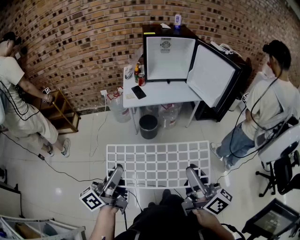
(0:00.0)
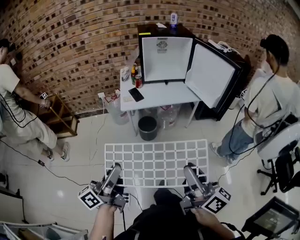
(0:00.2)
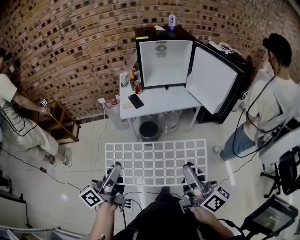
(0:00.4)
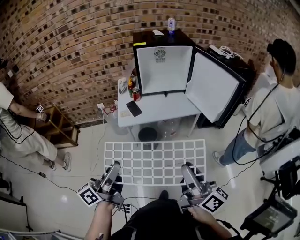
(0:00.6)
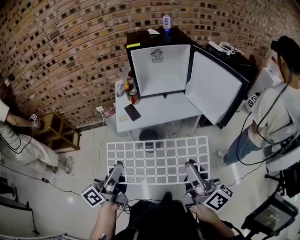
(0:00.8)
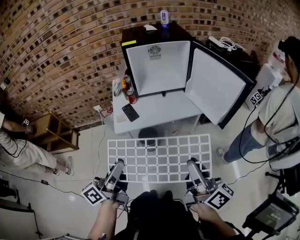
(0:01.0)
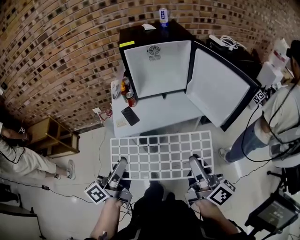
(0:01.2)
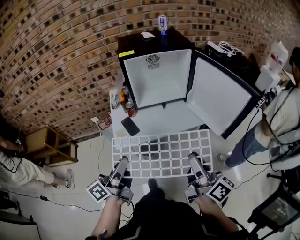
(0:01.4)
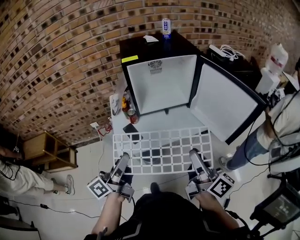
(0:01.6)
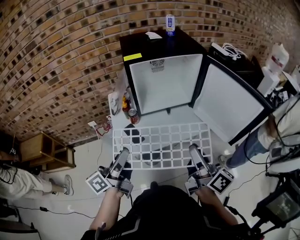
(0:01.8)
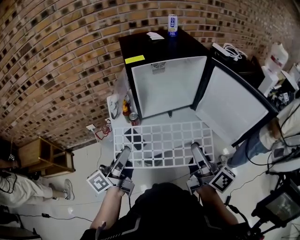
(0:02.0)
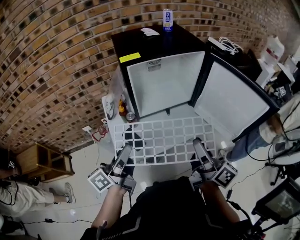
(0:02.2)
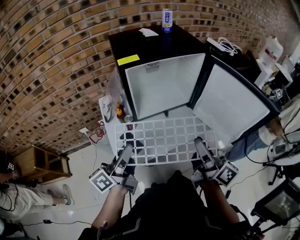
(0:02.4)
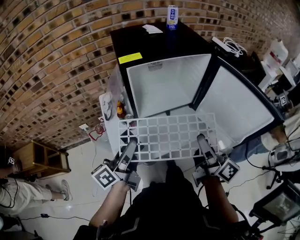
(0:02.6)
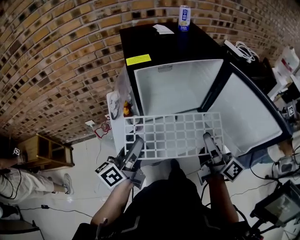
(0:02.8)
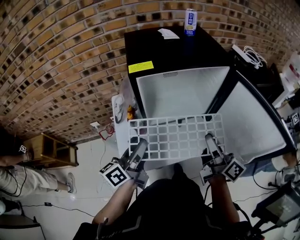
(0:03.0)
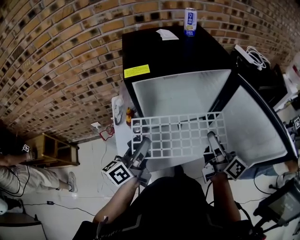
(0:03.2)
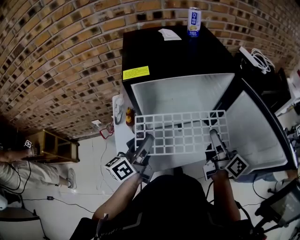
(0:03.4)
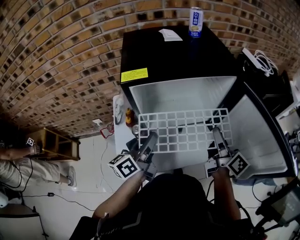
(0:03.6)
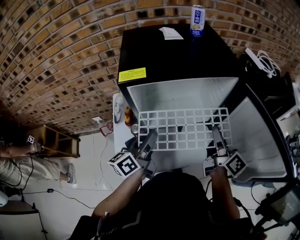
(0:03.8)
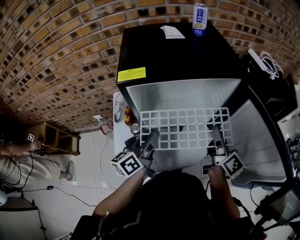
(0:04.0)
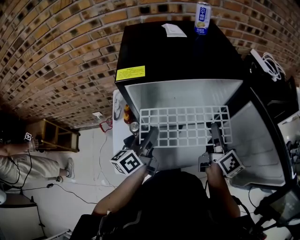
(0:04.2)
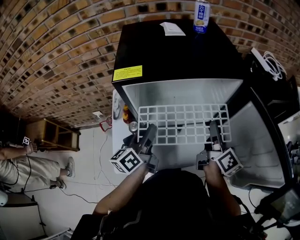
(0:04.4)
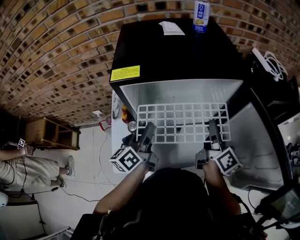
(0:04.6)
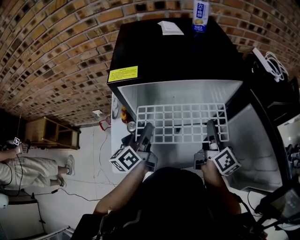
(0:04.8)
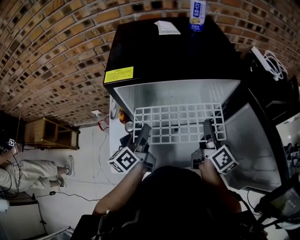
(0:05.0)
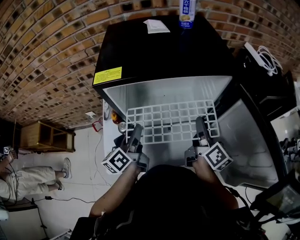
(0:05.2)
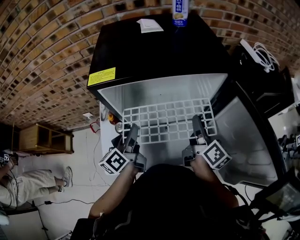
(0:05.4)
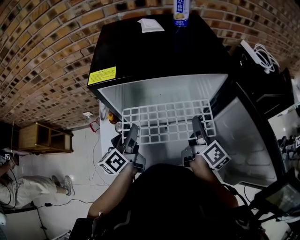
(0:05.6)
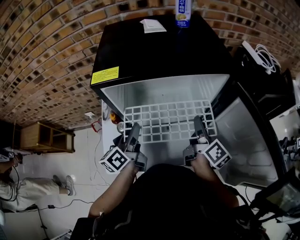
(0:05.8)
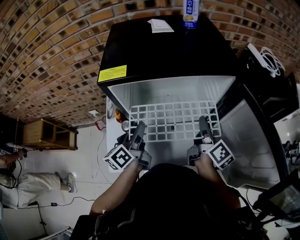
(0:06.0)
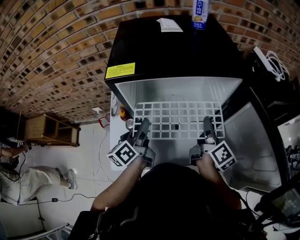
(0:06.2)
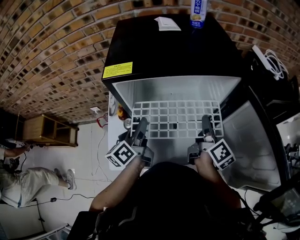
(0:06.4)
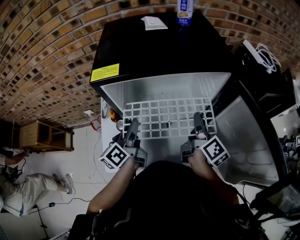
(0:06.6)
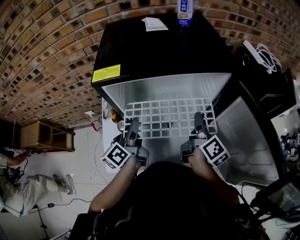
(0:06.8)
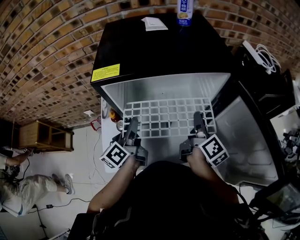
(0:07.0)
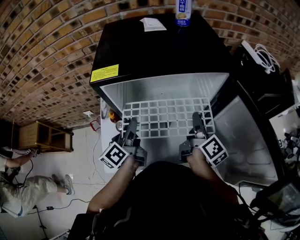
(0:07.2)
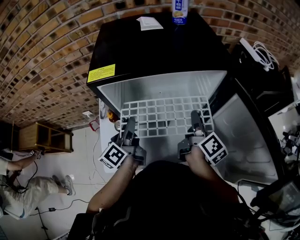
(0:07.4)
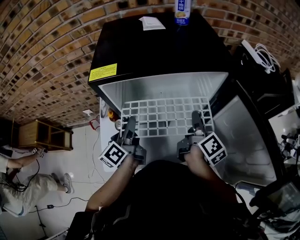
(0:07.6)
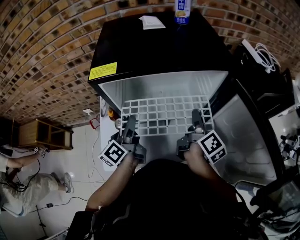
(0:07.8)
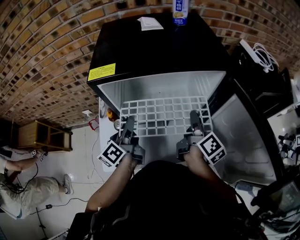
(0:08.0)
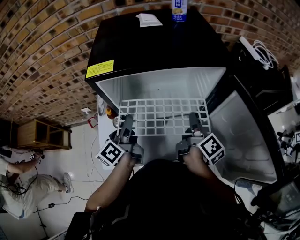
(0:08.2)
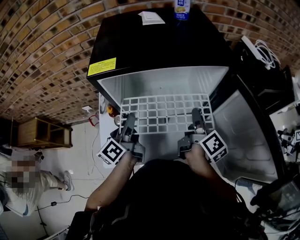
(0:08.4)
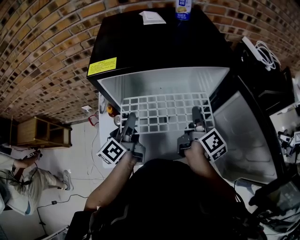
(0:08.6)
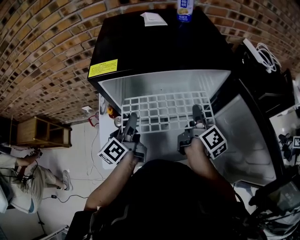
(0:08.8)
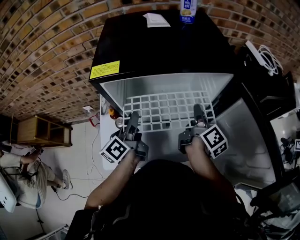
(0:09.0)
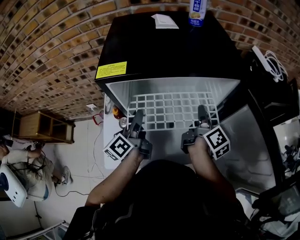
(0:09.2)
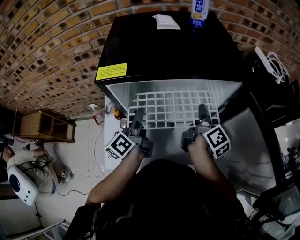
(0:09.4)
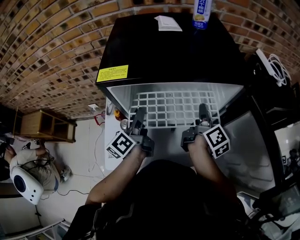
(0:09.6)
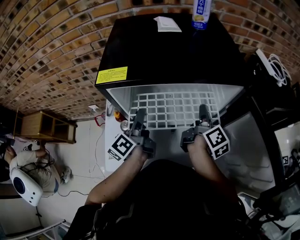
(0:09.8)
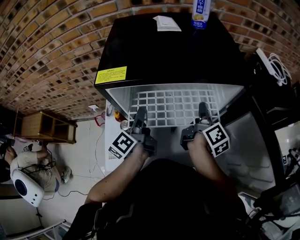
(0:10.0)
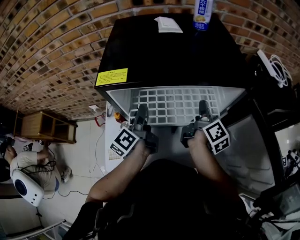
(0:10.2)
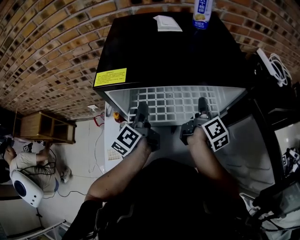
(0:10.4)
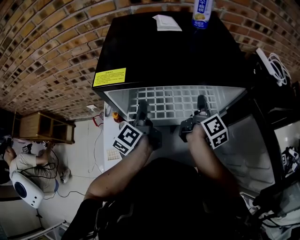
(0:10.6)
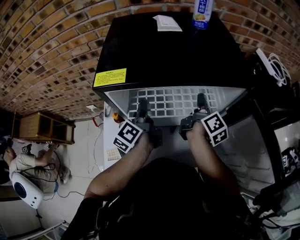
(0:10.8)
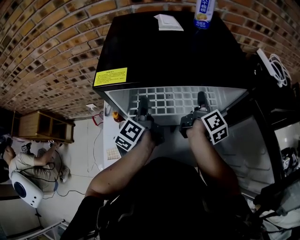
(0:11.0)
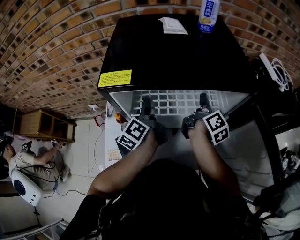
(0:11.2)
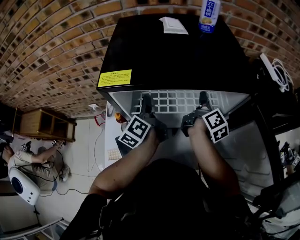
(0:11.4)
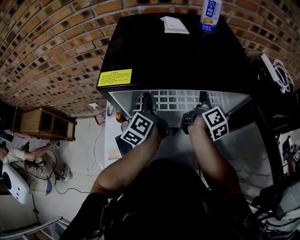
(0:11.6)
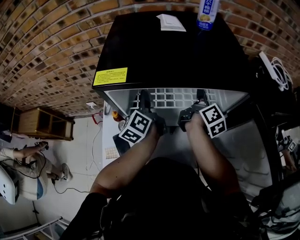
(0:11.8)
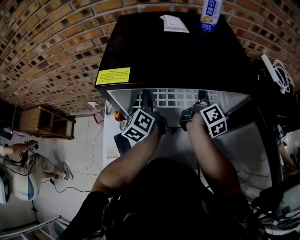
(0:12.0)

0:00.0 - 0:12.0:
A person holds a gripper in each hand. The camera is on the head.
0:00.0 - 0:01.6: The two grippers travel together, forward, about 40 cm.
0:01.6 - 0:03.0: Both grippers move forward, about 25 cm.
0:03.0 - 0:04.4: The left gripper heads forward and to the right, covering about 15 cm. Meanwhile the right gripper moves forward, approximately 15 cm.
0:04.4 - 0:06.0: The right gripper shifts by about 5 cm.
0:06.0 - 0:09.0: There are only small adjustments of the grippers.
0:09.0 - 0:10.4: Both grippers travel together forward, approximately 5 cm.
0:10.4 - 0:12.0: Both grippers move forward, approximately 5 cm.

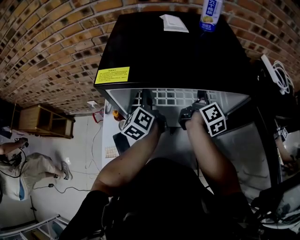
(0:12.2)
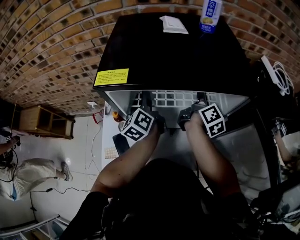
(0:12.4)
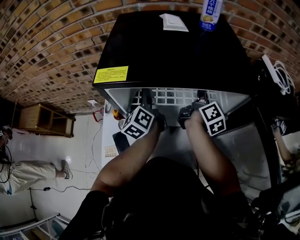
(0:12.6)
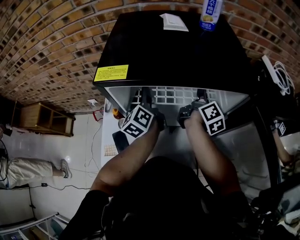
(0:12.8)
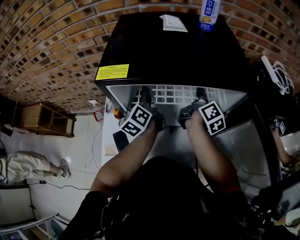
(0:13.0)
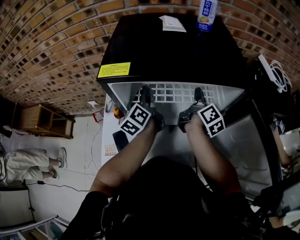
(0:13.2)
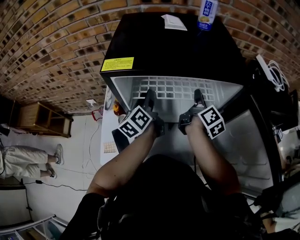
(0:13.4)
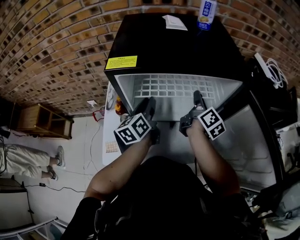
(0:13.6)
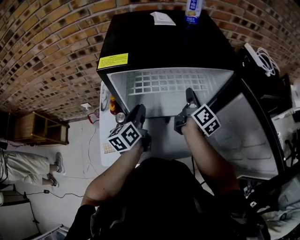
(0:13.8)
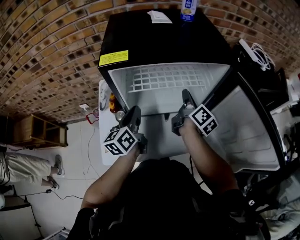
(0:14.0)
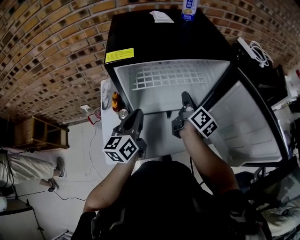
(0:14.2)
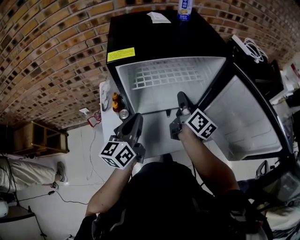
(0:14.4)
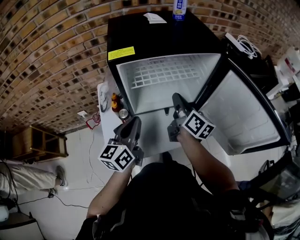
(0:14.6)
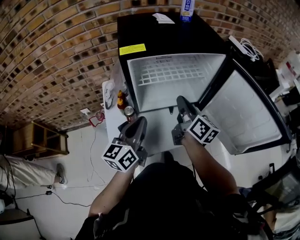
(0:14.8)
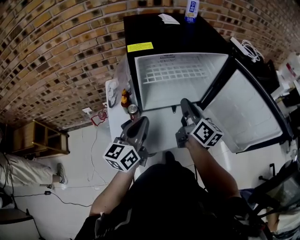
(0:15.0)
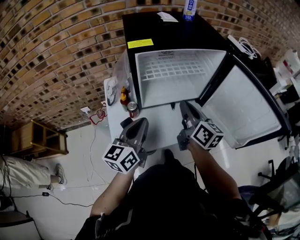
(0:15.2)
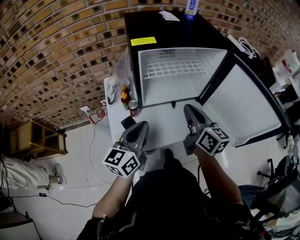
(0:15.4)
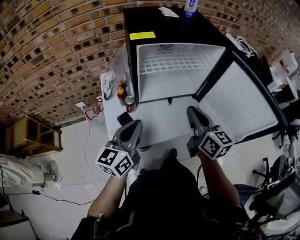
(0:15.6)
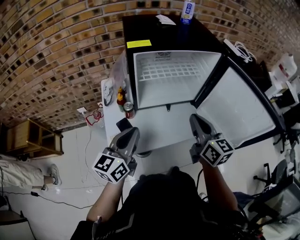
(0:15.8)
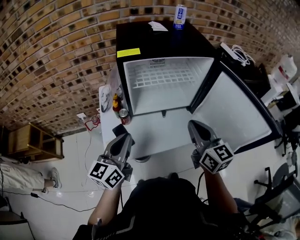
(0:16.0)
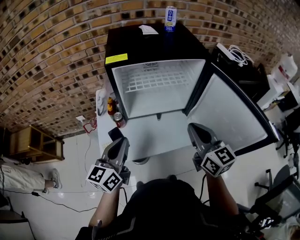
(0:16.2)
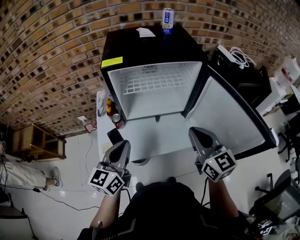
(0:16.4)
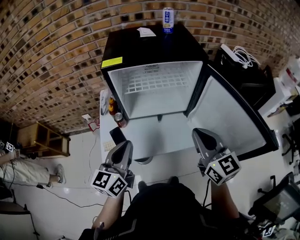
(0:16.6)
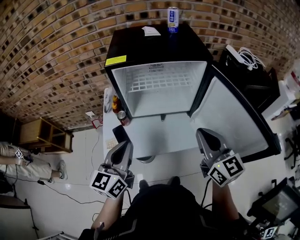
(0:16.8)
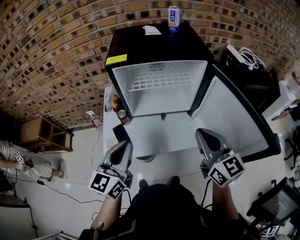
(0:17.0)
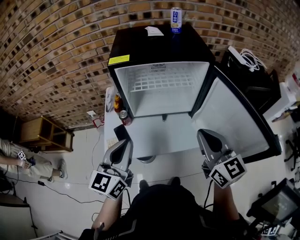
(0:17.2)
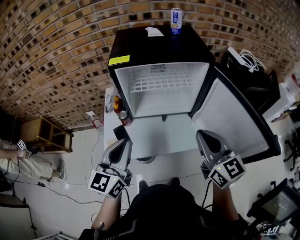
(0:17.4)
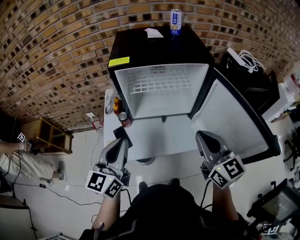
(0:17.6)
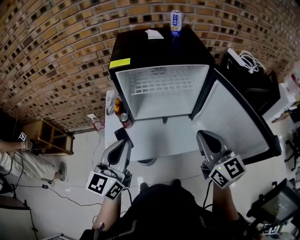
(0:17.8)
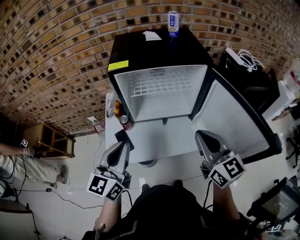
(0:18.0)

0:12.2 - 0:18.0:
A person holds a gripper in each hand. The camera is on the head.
0:12.2 - 0:13.6: Both grippers travel together backward, roughly 5 cm. The left gripper changes its angle by approximately 20 degrees.
0:13.6 - 0:15.0: The right gripper is displaced backward and to the left by about 20 cm, and closes its fingers; the left gripper is displaced backward by approximately 20 cm, swivels roughly 30 degrees, and closes its fingers.
0:15.0 - 0:16.6: The left gripper heads backward and to the right, covering about 10 cm. Meanwhile the right gripper is displaced to the right, backward and upward by some 20 cm, and swivels about 40 degrees.
0:16.6 - 0:18.0: The grippers make only small movements.

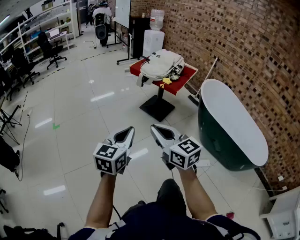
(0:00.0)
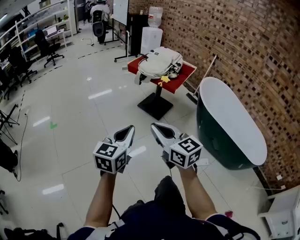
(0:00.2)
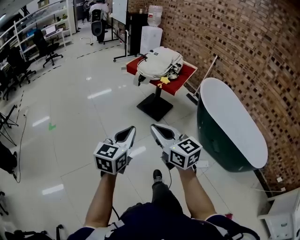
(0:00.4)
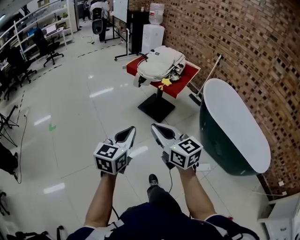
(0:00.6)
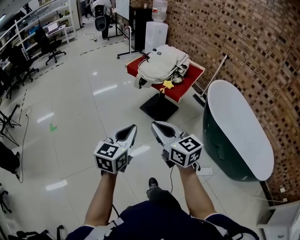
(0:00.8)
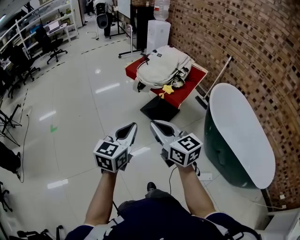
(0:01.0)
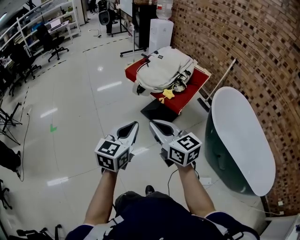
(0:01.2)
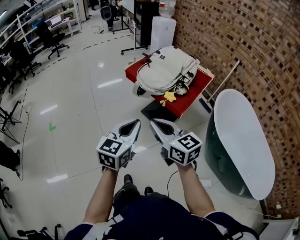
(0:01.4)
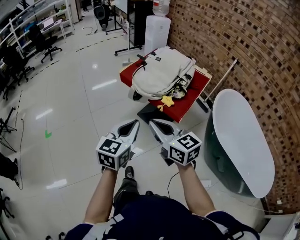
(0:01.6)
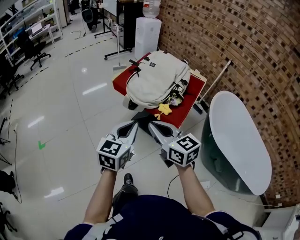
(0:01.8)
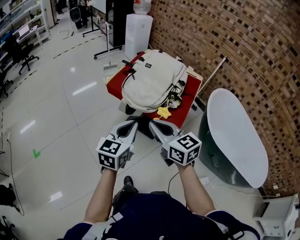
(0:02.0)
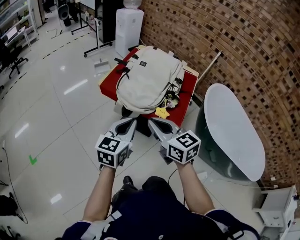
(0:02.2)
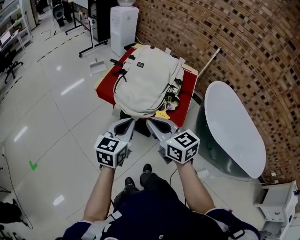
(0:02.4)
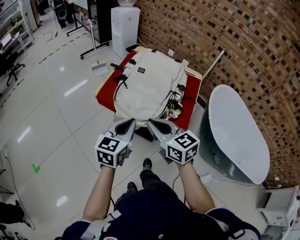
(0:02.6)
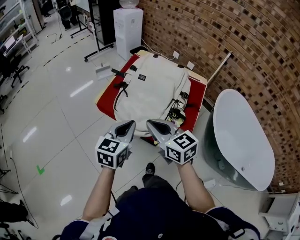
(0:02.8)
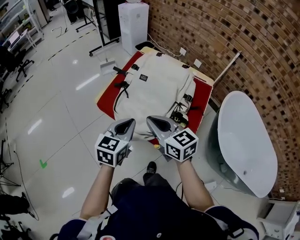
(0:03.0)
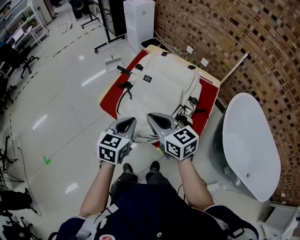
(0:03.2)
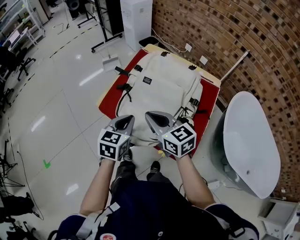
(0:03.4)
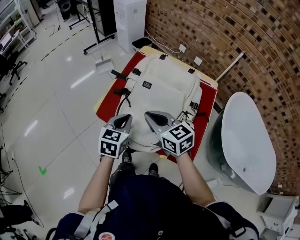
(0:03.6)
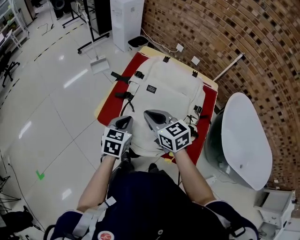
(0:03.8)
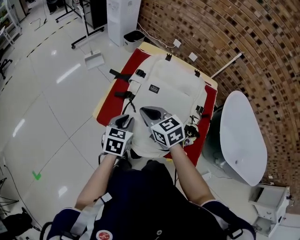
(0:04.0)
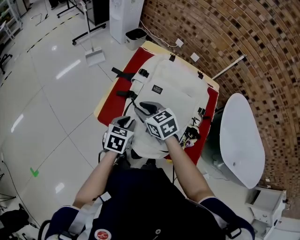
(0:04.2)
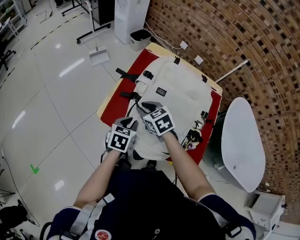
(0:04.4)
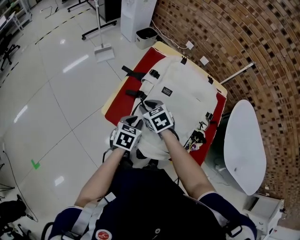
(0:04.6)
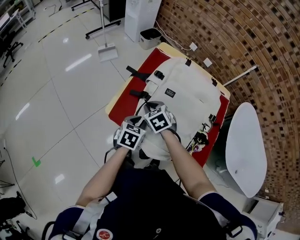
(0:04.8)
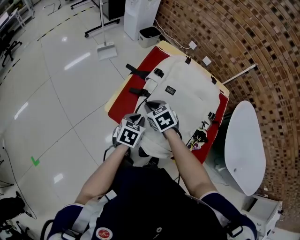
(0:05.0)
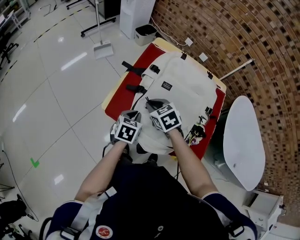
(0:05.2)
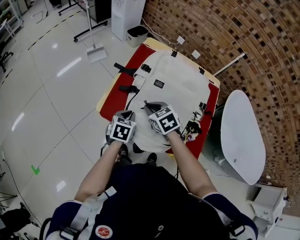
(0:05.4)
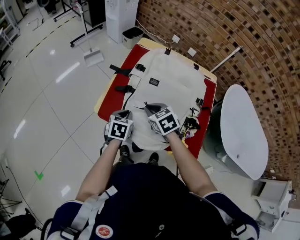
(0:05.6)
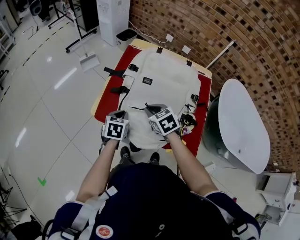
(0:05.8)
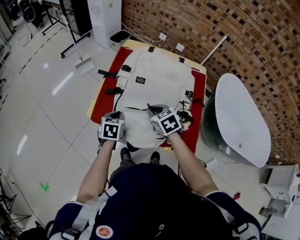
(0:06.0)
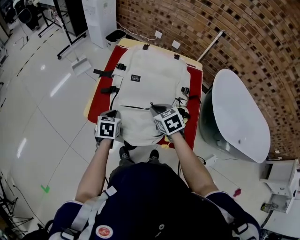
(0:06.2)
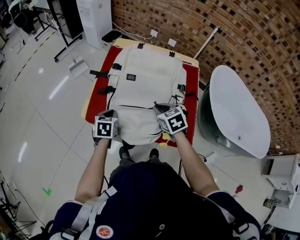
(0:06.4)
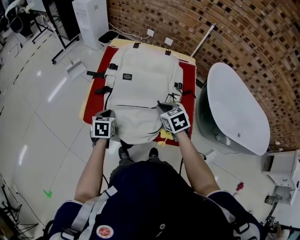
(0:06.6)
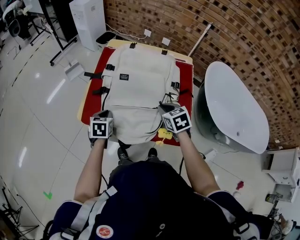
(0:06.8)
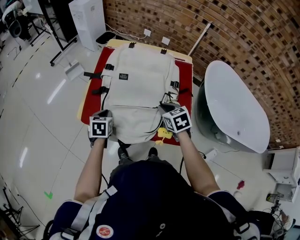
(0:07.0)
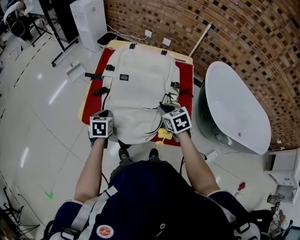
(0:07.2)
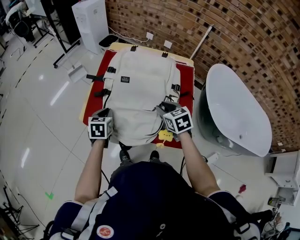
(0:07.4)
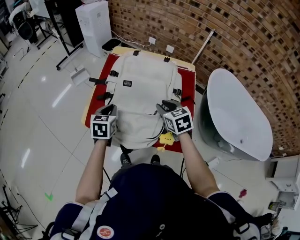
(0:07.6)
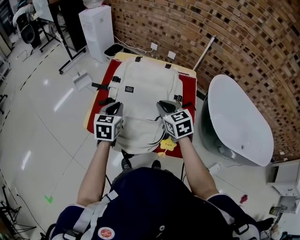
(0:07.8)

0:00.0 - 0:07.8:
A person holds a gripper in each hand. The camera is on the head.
0:00.0 - 0:01.6: The two grippers travel together, forward, about 40 cm.
0:01.6 - 0:03.2: Both grippers travel together forward, roughly 35 cm.
0:03.2 - 0:04.6: The right gripper goes about 25 cm forward, downward and to the left, tilts its fingers some 40 degrees downward, and opens its fingers. Meanwhile the left gripper goes approximately 20 cm downward and forward.
0:04.6 - 0:06.2: The right gripper moves to the right and backward, approximately 15 cm.
0:06.2 - 0:07.8: The grippers both shift upward and to the right by approximately 10 cm. The right gripper opens, then closes again.
